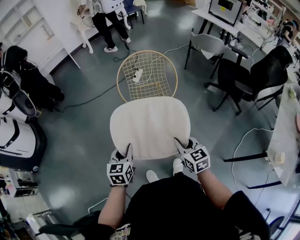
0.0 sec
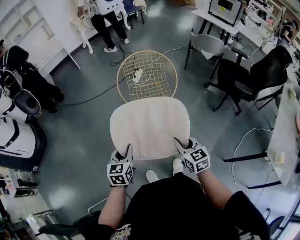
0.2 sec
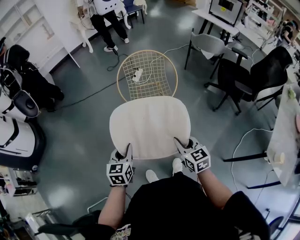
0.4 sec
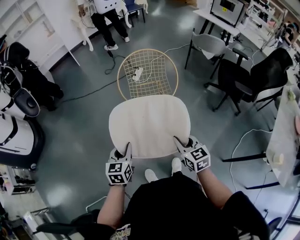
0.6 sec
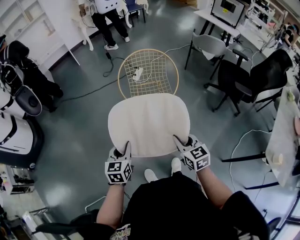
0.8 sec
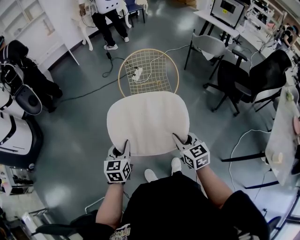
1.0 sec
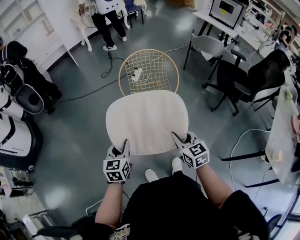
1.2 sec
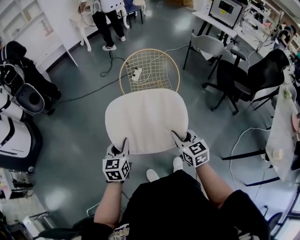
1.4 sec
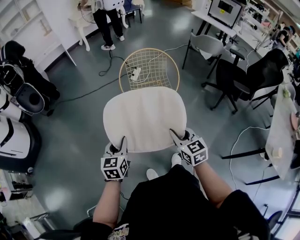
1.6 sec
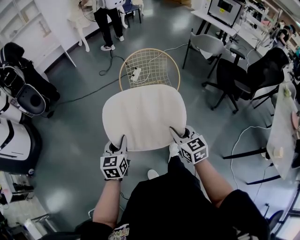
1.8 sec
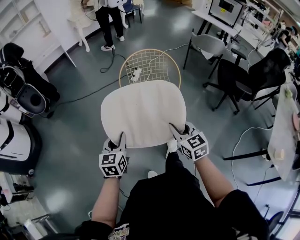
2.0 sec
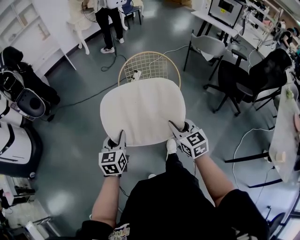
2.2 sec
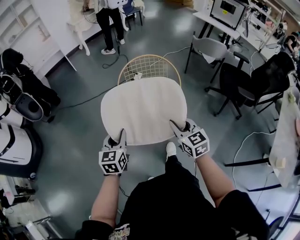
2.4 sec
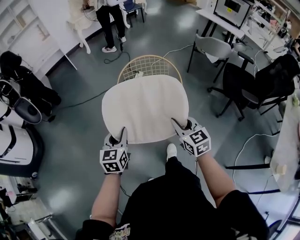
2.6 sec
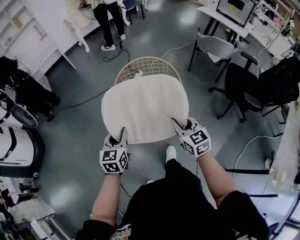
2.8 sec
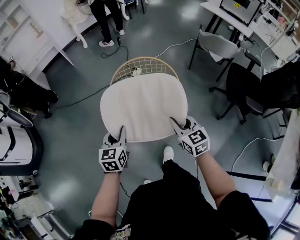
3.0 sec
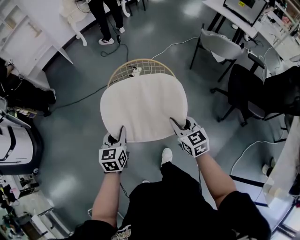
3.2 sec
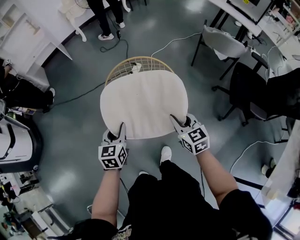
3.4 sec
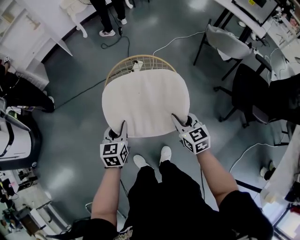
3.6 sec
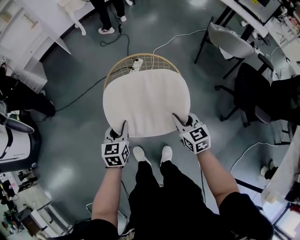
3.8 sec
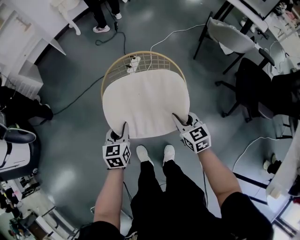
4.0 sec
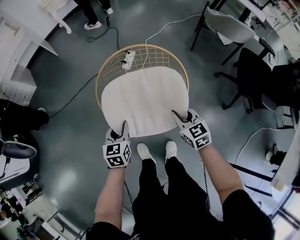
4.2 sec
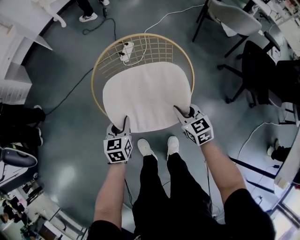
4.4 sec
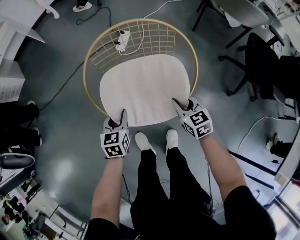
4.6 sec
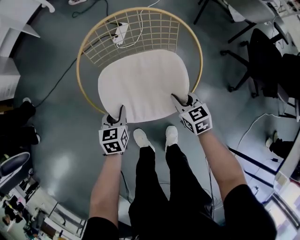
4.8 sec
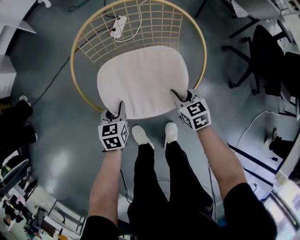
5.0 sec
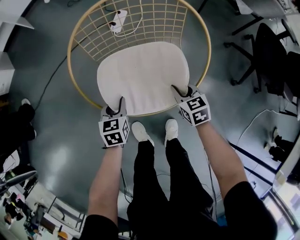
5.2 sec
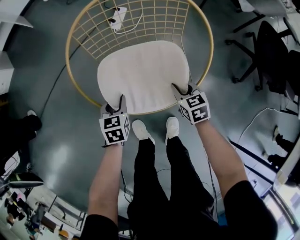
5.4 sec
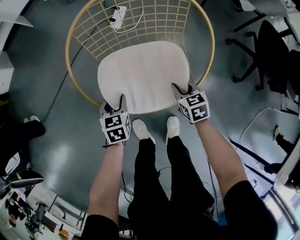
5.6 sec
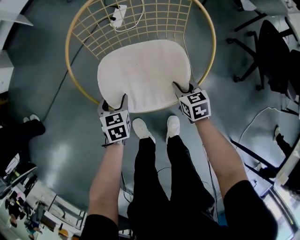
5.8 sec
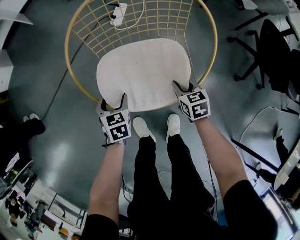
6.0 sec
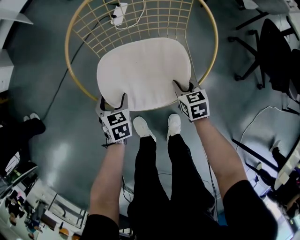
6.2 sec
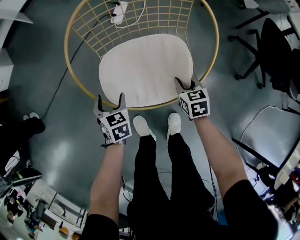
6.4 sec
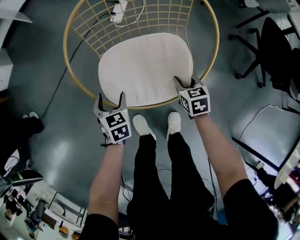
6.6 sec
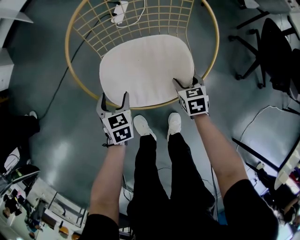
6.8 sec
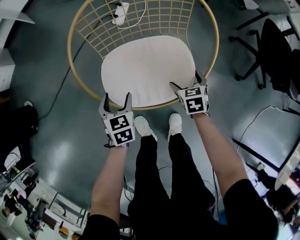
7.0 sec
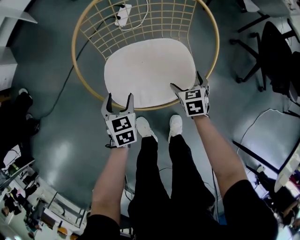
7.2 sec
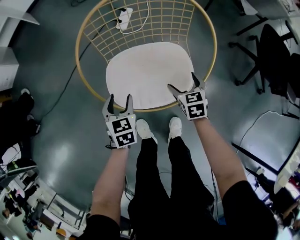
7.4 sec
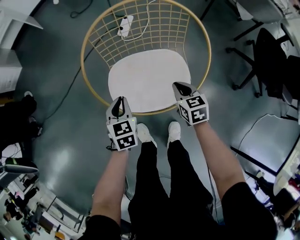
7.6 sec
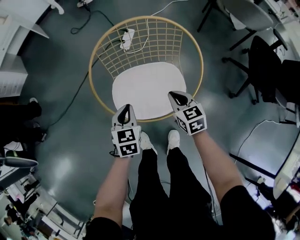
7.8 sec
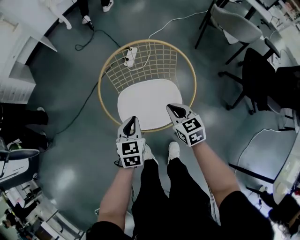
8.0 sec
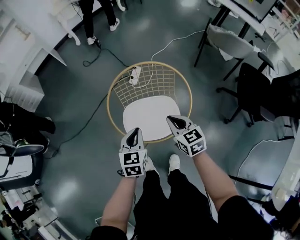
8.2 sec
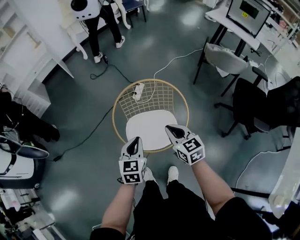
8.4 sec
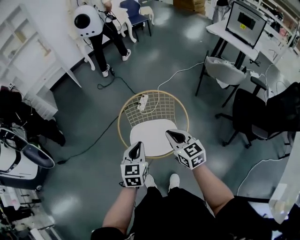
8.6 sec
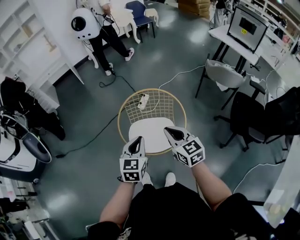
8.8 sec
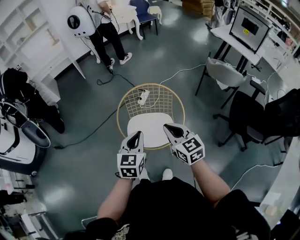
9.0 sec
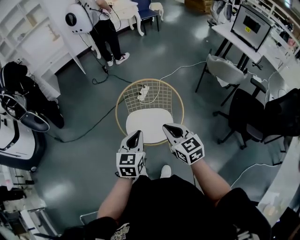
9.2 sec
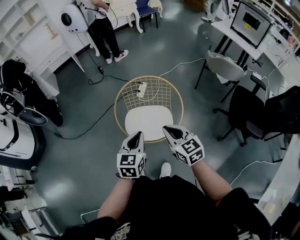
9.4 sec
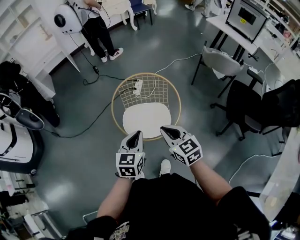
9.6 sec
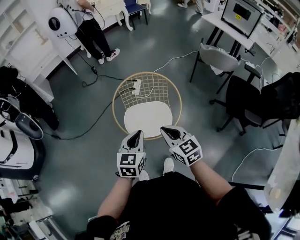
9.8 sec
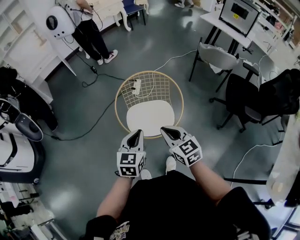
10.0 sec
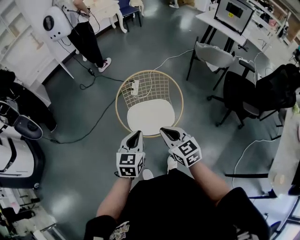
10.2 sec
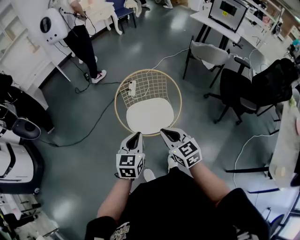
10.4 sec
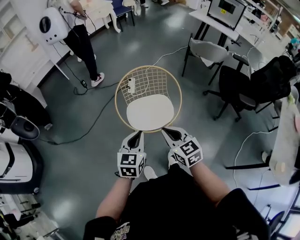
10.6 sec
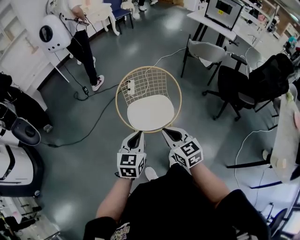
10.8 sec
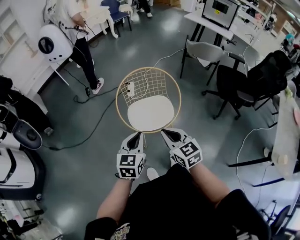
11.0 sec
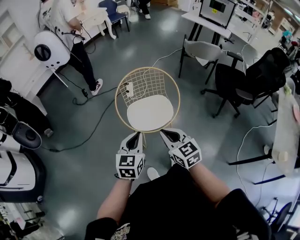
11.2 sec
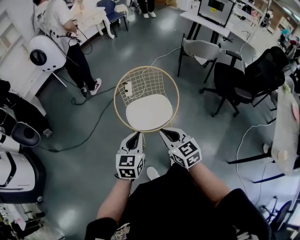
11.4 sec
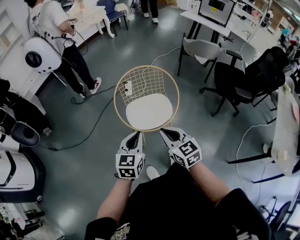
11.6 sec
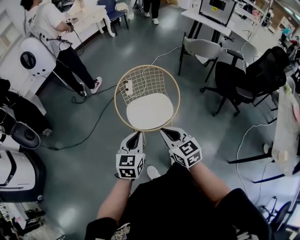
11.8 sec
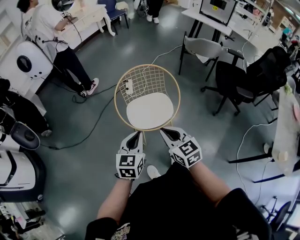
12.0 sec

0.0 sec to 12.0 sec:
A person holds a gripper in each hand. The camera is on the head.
0.0 sec to 1.6 sec: Both grippers travel together to the left, approximately 10 cm.
1.6 sec to 3.0 sec: Both grippers move forward and to the right, some 35 cm.
3.0 sec to 4.4 sec: The two grippers go roughly 30 cm downward and forward.
4.4 sec to 6.0 sec: Both grippers travel together downward, roughly 20 cm. The left gripper opens its fingers.
6.0 sec to 7.6 sec: The two grippers go approximately 10 cm upward. The left gripper closes up. Meanwhile the right gripper opens, then closes once more.
7.6 sec to 9.0 sec: The two grippers go about 40 cm upward. The right gripper rotates some 30 degrees, while the left gripper changes its angle by roughly 20 degrees.
9.0 sec to 10.4 sec: The two grippers go roughly 15 cm to the left and backward.
10.4 sec to 12.0 sec: The right gripper moves roughly 5 cm; the left gripper changes place by about 5 cm.

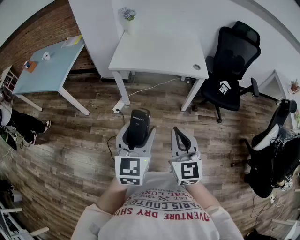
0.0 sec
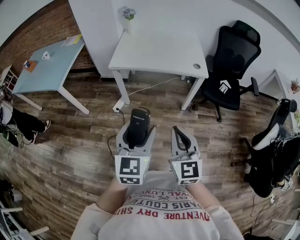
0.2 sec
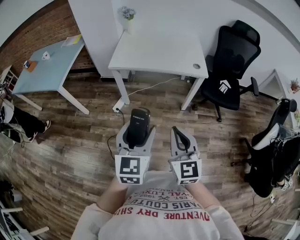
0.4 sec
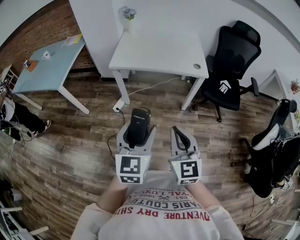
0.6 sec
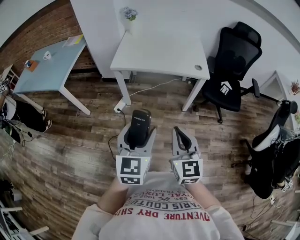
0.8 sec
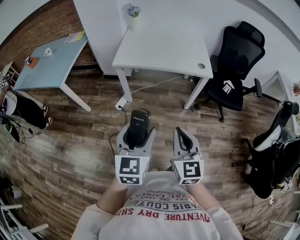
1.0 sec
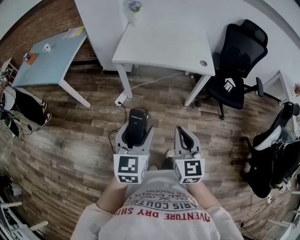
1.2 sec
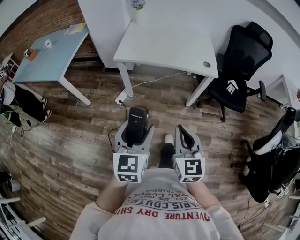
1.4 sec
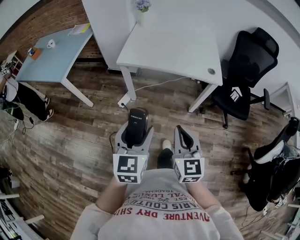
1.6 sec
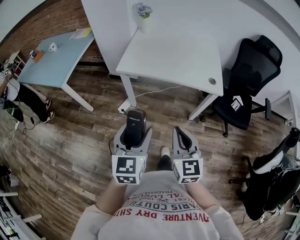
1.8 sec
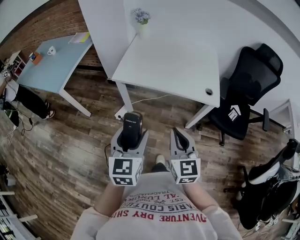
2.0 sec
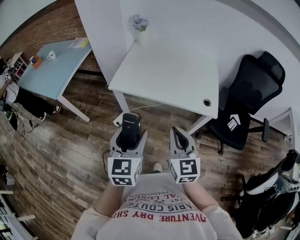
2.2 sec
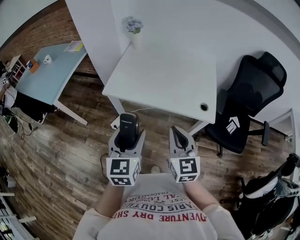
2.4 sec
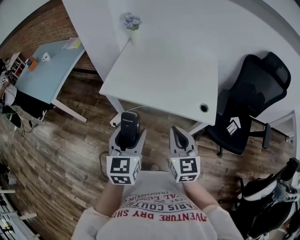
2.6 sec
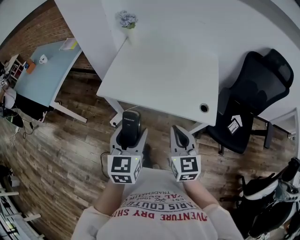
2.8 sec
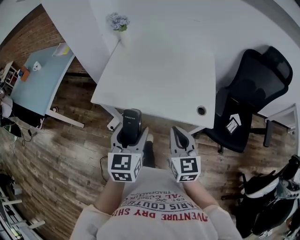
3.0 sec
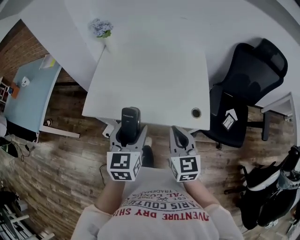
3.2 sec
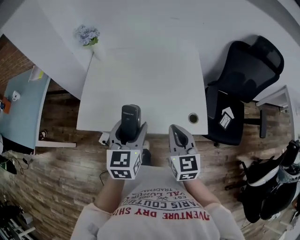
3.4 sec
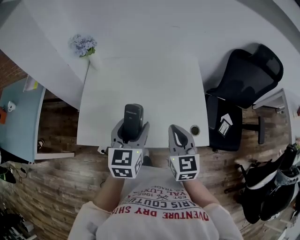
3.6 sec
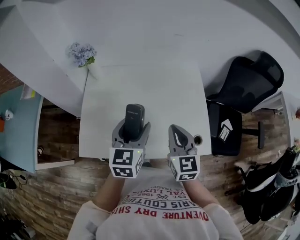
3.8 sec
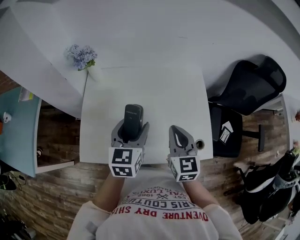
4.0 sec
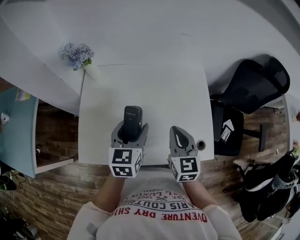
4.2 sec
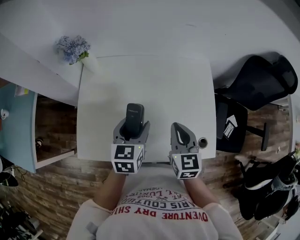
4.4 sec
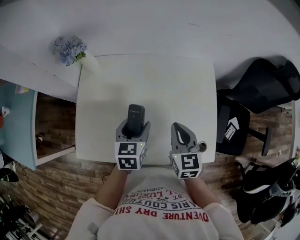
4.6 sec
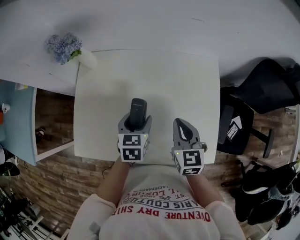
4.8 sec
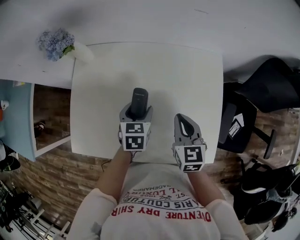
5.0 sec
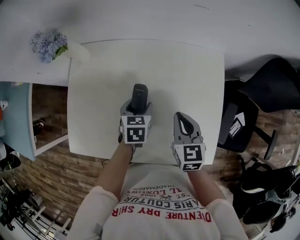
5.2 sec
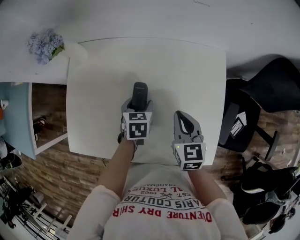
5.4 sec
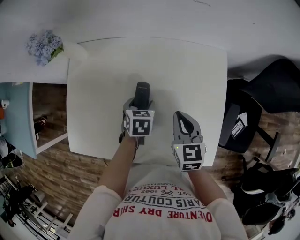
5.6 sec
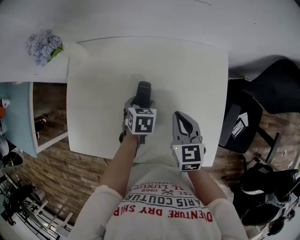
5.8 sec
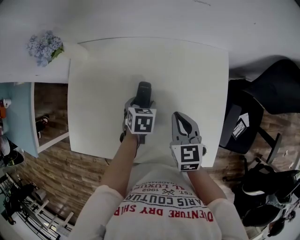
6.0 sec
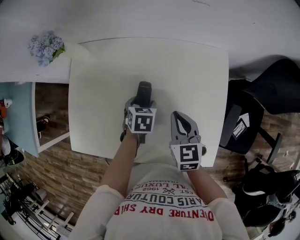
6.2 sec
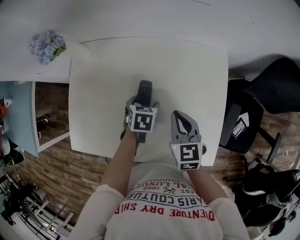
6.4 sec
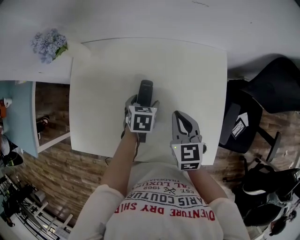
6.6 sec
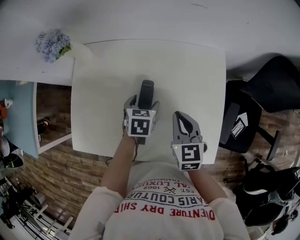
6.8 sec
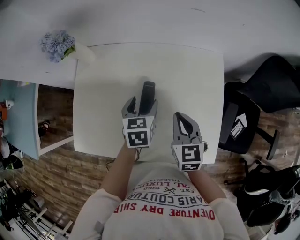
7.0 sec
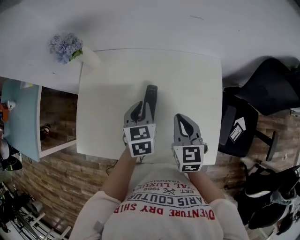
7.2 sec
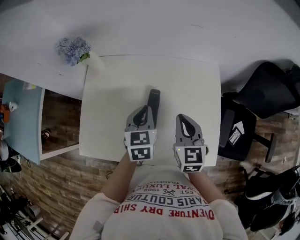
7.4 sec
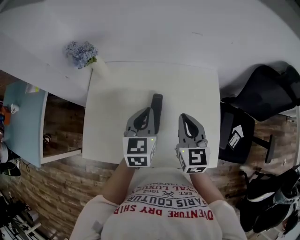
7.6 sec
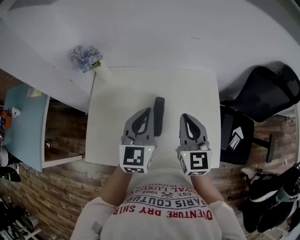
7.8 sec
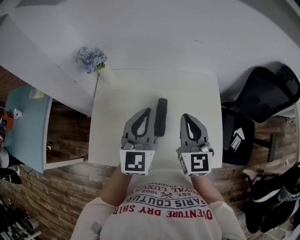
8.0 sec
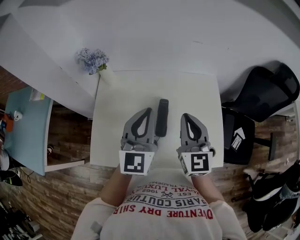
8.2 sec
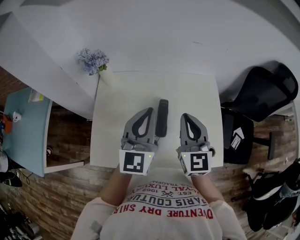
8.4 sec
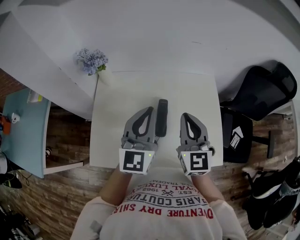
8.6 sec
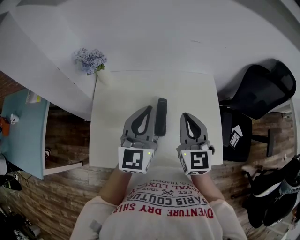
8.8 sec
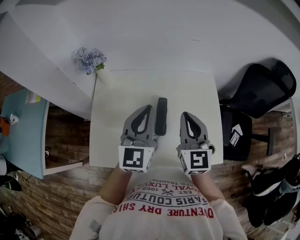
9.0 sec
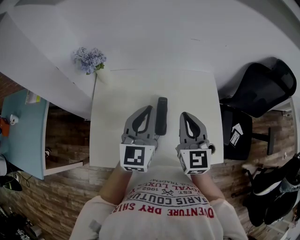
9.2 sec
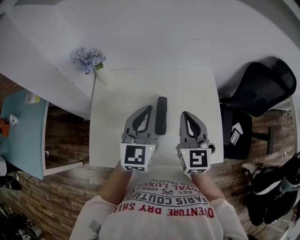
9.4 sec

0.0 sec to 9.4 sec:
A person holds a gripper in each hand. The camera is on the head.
0.0 sec to 1.6 sec: The grippers both shift forward by roughly 10 cm.
1.6 sec to 3.2 sec: Both grippers are carried forward and to the right, some 40 cm.
3.2 sec to 4.8 sec: The right gripper shifts roughly 30 cm forward. The left gripper heads forward and downward, covering approximately 35 cm, and swivels some 20 degrees.
4.8 sec to 6.2 sec: The left gripper moves downward and forward, some 15 cm, and turns by approximately 20 degrees. Meanwhile the right gripper is displaced downward by some 5 cm.
6.2 sec to 7.8 sec: The left gripper goes about 30 cm upward, tips its fingers upward by about 60 degrees, and closes its fingers. Meanwhile the right gripper is displaced upward by some 20 cm, and changes its angle by about 30 degrees.
7.8 sec to 9.4 sec: The grippers move only a little.

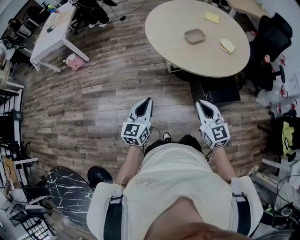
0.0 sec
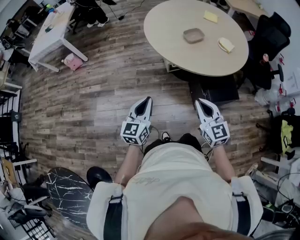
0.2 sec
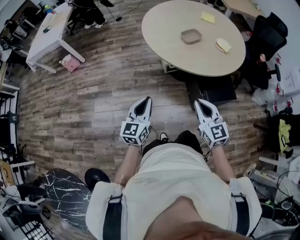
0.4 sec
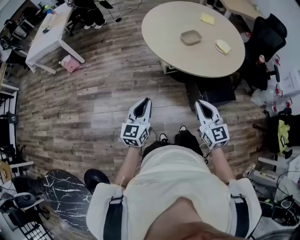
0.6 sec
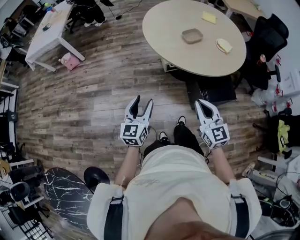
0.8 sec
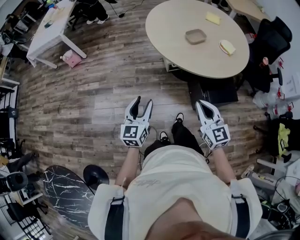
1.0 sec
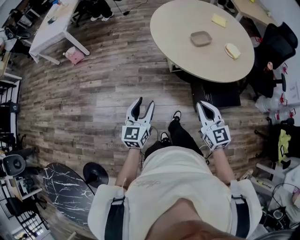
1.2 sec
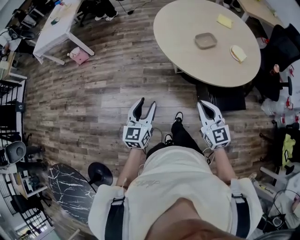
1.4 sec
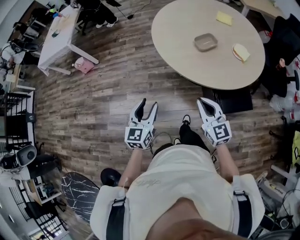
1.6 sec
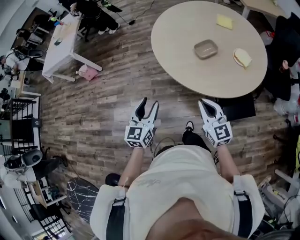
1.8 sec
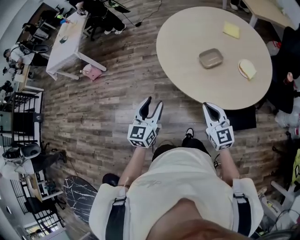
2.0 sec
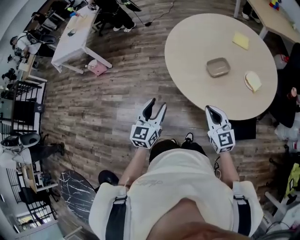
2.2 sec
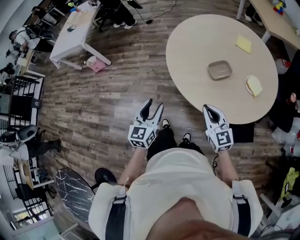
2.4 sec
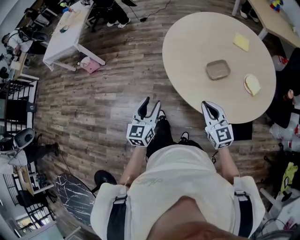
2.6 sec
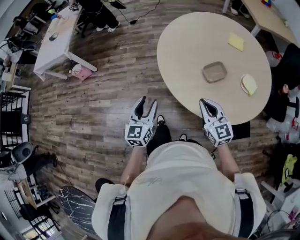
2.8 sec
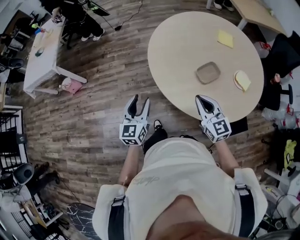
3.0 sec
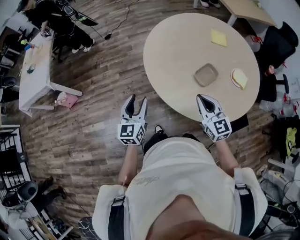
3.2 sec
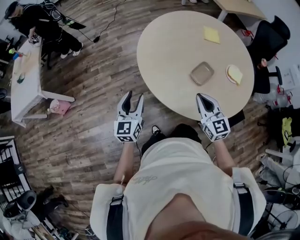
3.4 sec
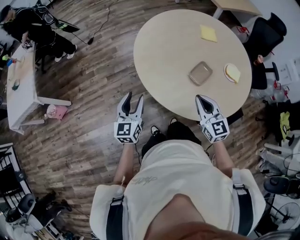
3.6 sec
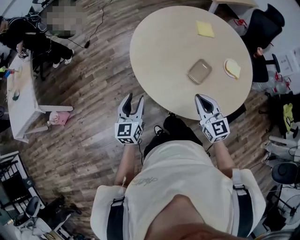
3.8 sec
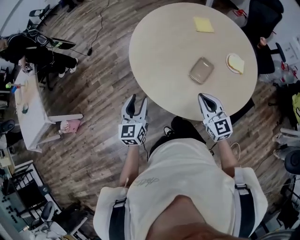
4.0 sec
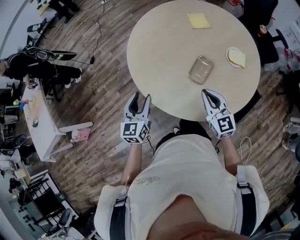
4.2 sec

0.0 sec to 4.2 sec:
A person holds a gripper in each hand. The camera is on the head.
0.0 sec to 1.4 sec: The grippers both shift forward by approximately 5 cm. The left gripper opens.
1.4 sec to 2.8 sec: The two grippers go some 25 cm forward.
2.8 sec to 4.2 sec: The right gripper changes place by roughly 15 cm, and turns by roughly 30 degrees, while the left gripper ends up some 25 cm from where it was, and turns by some 30 degrees.
